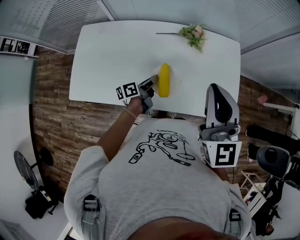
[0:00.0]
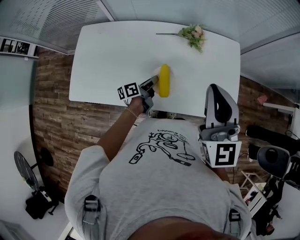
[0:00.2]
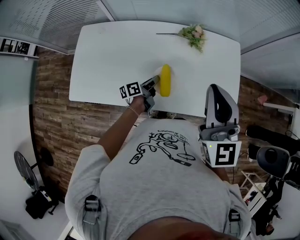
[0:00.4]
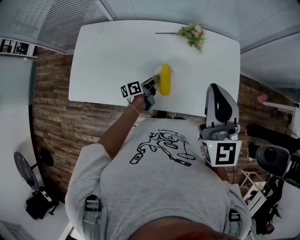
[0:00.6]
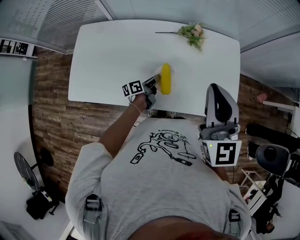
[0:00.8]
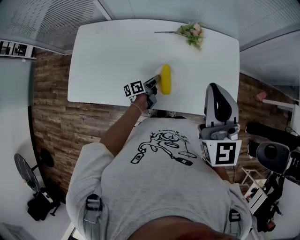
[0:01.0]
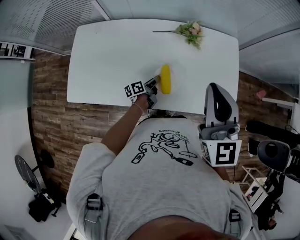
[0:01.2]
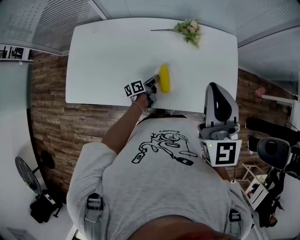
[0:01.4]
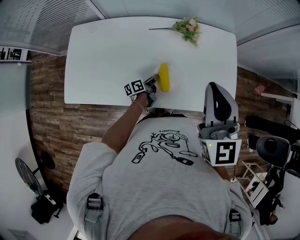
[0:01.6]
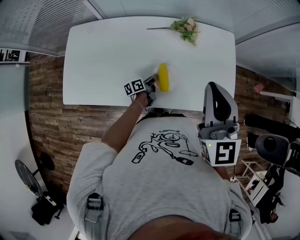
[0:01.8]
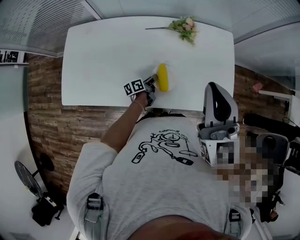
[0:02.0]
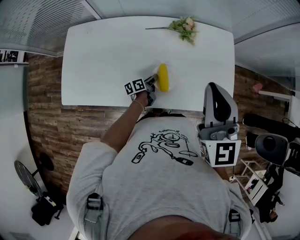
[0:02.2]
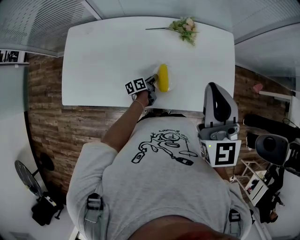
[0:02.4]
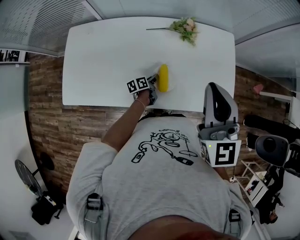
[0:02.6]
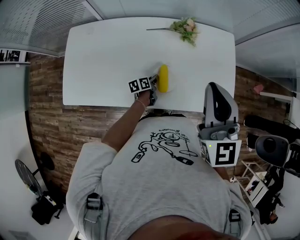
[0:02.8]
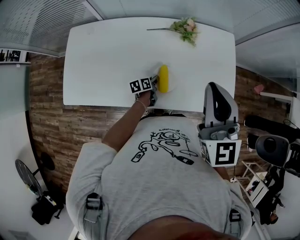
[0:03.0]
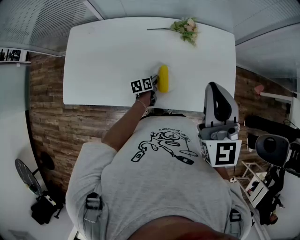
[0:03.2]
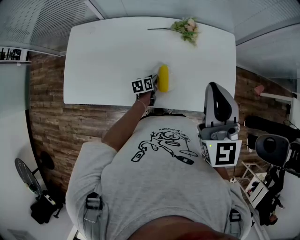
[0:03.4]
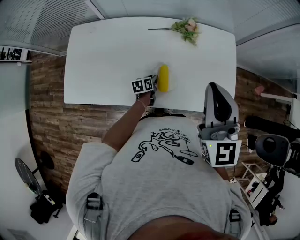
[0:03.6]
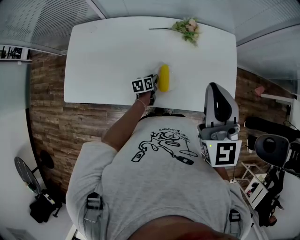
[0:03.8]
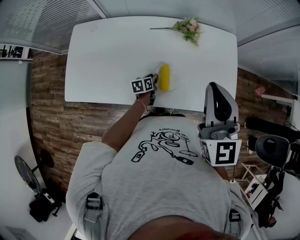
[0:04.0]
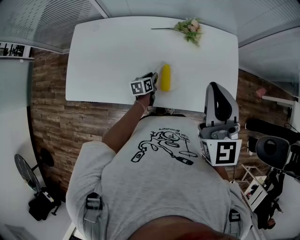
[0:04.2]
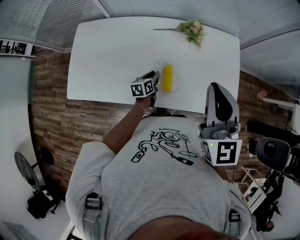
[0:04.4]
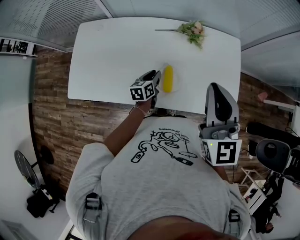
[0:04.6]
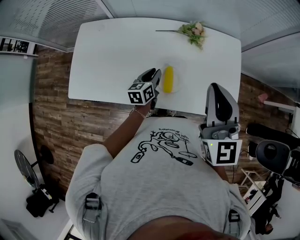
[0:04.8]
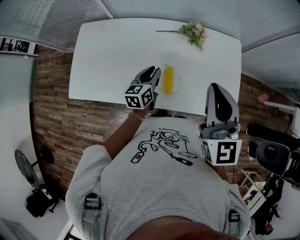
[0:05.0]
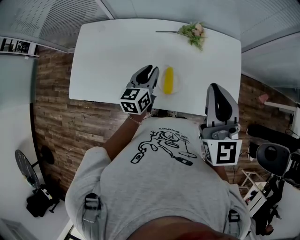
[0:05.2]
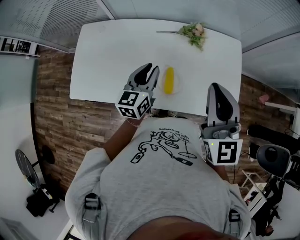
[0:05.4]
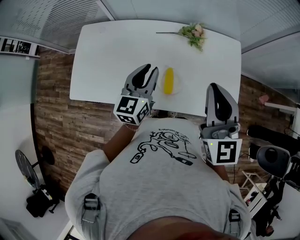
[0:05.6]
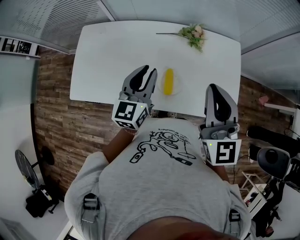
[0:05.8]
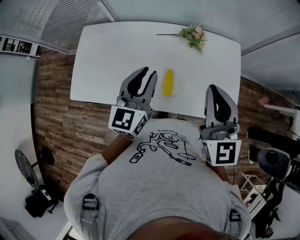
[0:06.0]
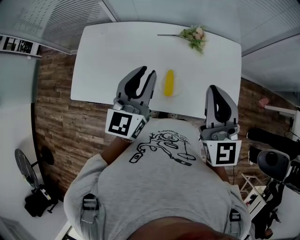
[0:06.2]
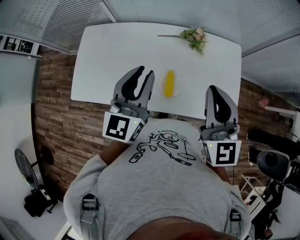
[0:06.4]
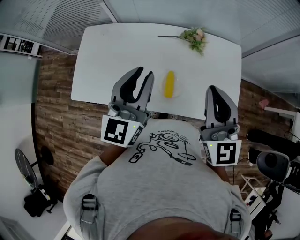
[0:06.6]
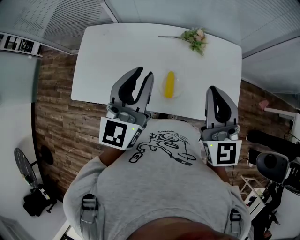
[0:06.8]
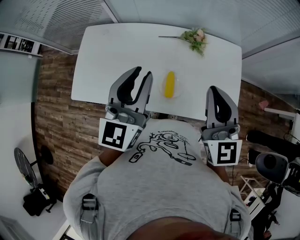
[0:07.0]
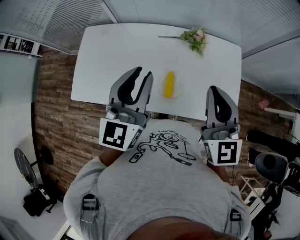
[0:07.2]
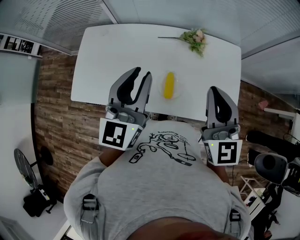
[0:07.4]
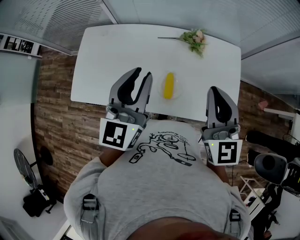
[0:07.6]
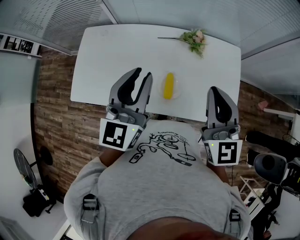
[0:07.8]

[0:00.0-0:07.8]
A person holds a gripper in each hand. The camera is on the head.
0:00.0 to 0:01.6: The left gripper goes about 15 cm downward.
0:01.6 to 0:03.2: The left gripper changes its angle by approximately 30 degrees.
0:03.2 to 0:04.6: The left gripper travels upward by some 10 cm, and changes its angle by about 20 degrees.
0:04.6 to 0:06.2: The left gripper moves upward, about 30 cm, and rotates roughly 40 degrees.
0:06.2 to 0:07.8: The grippers move only a little.

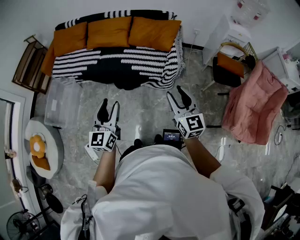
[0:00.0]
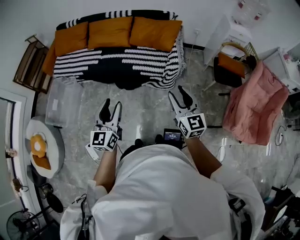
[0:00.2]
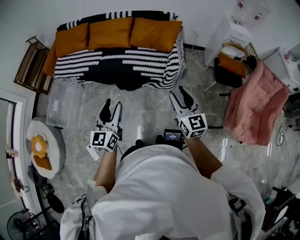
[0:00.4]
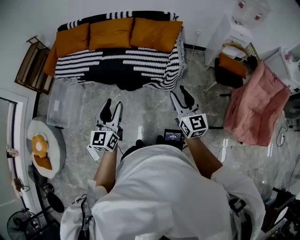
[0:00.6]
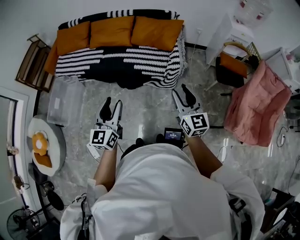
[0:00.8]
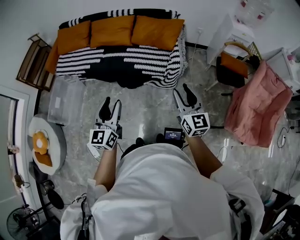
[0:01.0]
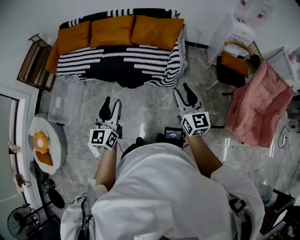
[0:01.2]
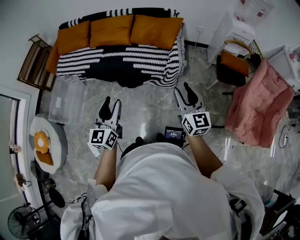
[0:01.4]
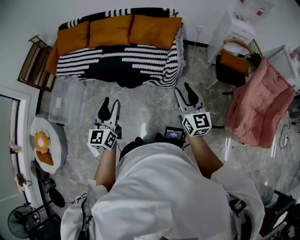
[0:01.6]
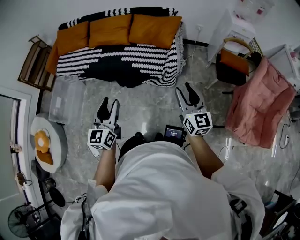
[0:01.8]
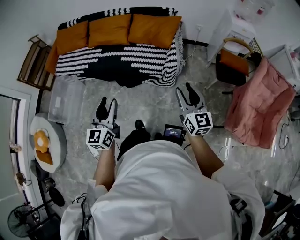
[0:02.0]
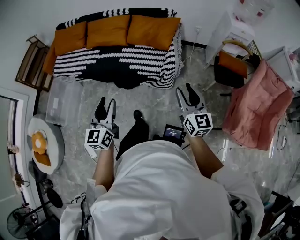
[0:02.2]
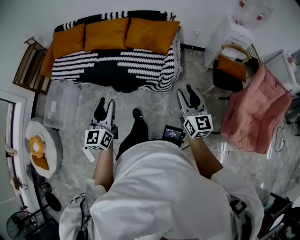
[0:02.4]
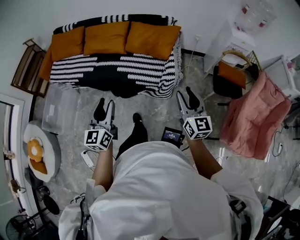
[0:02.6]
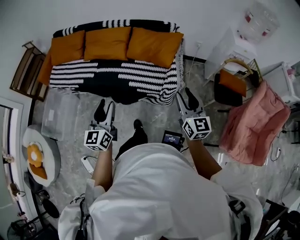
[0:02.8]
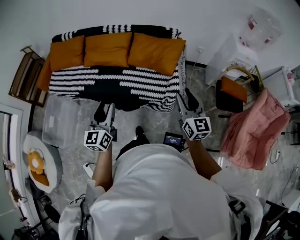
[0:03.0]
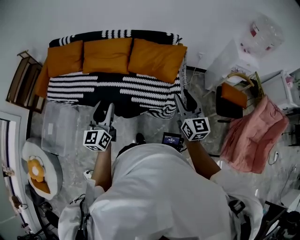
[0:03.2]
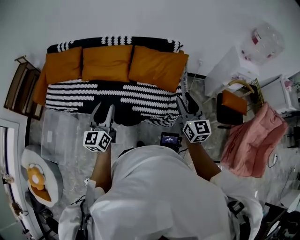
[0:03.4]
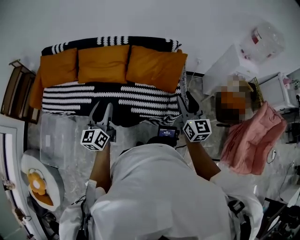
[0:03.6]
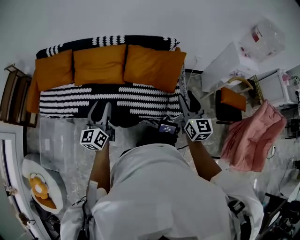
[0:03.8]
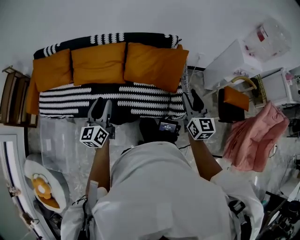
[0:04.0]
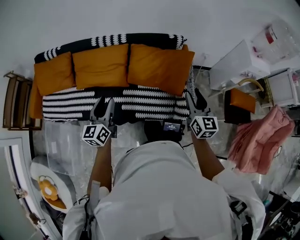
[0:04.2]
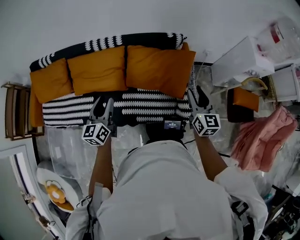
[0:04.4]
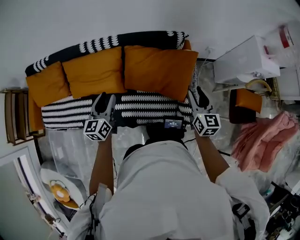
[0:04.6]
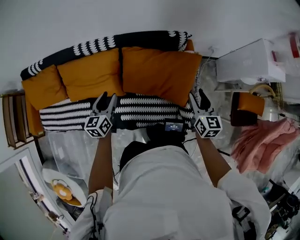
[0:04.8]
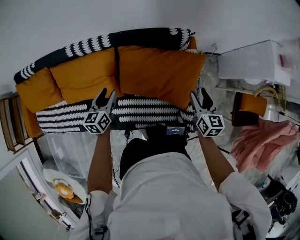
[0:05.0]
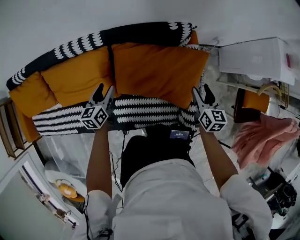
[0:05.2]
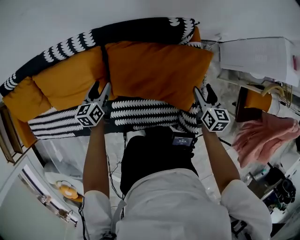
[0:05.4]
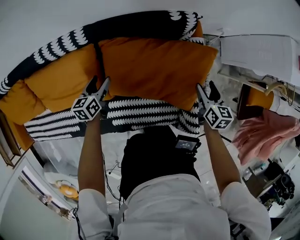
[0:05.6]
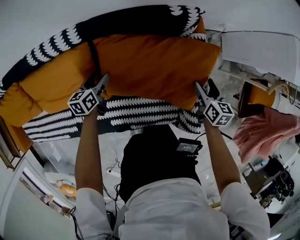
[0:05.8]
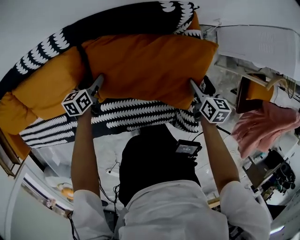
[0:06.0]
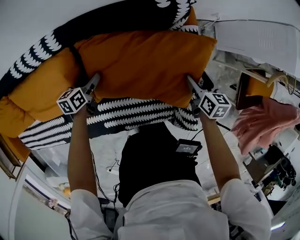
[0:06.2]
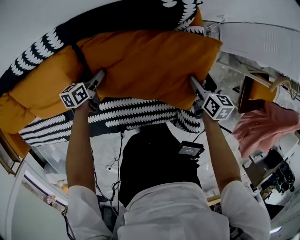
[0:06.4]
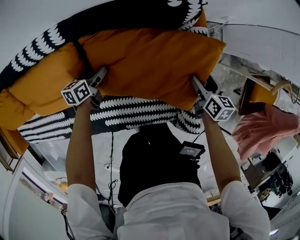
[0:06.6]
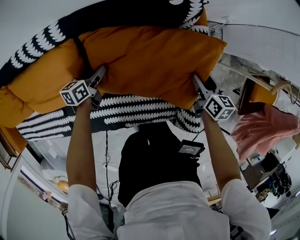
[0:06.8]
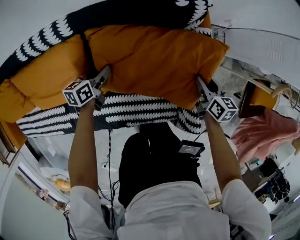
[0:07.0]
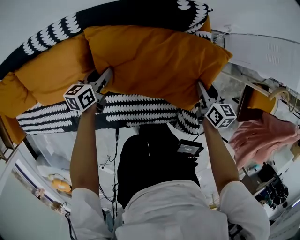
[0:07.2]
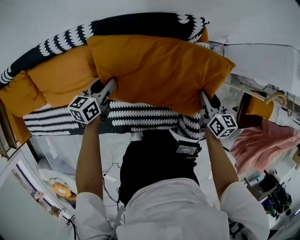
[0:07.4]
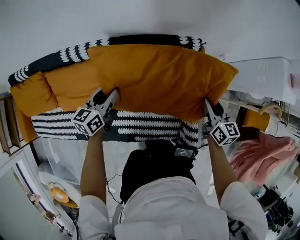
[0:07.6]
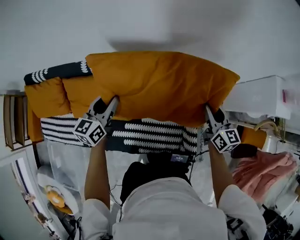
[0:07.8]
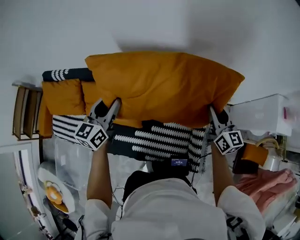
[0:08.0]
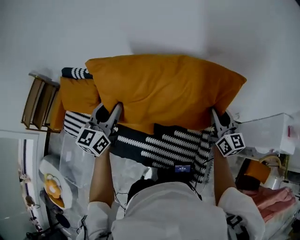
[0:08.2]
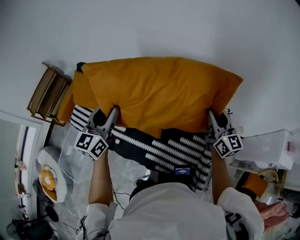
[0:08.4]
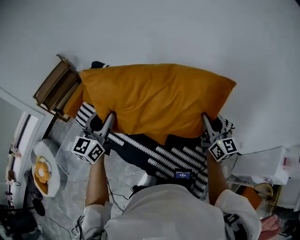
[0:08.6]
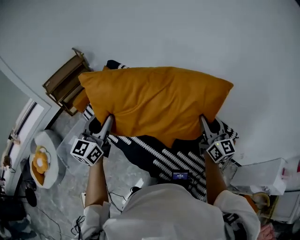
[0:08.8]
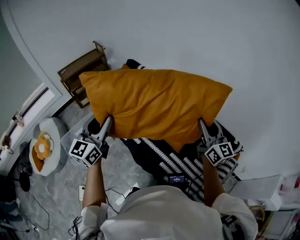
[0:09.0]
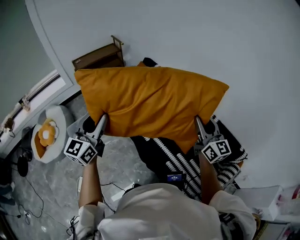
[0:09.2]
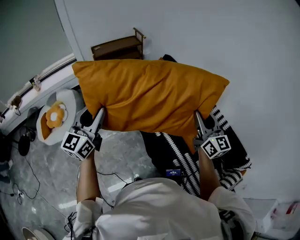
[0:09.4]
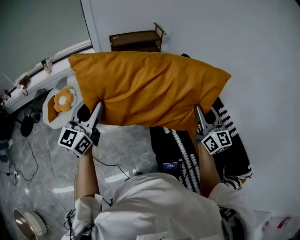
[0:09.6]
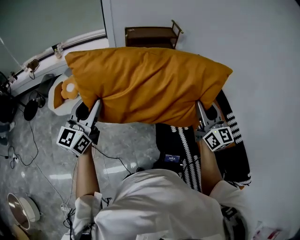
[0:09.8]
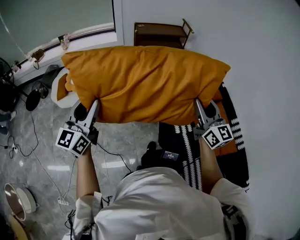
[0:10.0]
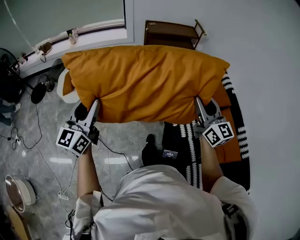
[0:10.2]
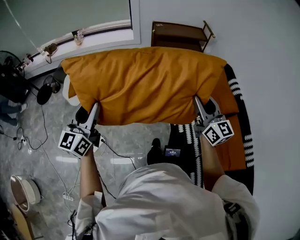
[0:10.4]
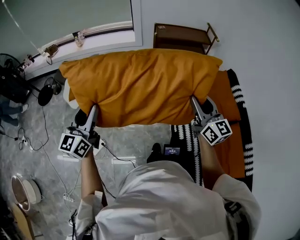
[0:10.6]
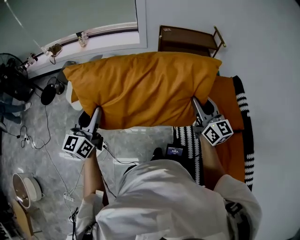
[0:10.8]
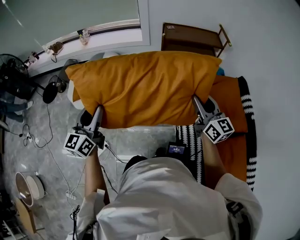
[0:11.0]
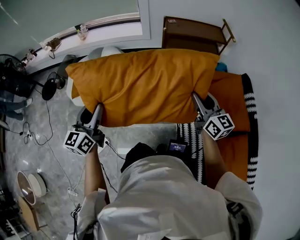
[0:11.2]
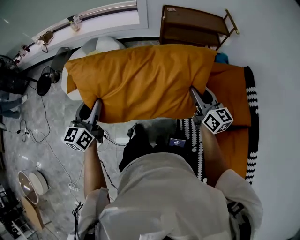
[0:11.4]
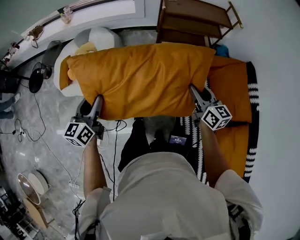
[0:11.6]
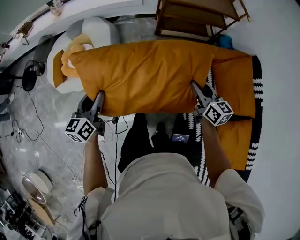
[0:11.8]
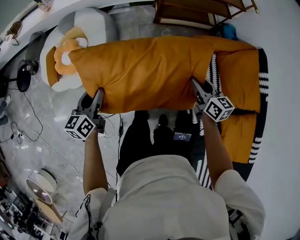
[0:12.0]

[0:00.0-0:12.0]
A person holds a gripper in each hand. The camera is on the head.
0:00.0 to 0:01.6: The left gripper goes about 5 cm to the right; the right gripper is displaced to the right by about 10 cm.
0:01.6 to 0:03.0: Both grippers travel together forward, approximately 20 cm.
0:03.0 to 0:04.4: The two grippers go approximately 40 cm forward.
0:04.4 to 0:06.0: The grippers both shift downward and forward by some 50 cm. The right gripper points its fingers approximately 30 degrees further downward, and opens up; the left gripper tips its fingers downward by about 30 degrees, and opens.
0:06.0 to 0:07.6: Both grippers move upward, roughly 20 cm. The right gripper turns by roughly 20 degrees, and closes its fingers. The left gripper changes its angle by about 20 degrees, and closes up.
0:07.6 to 0:09.0: The two grippers travel together, about 50 cm. The right gripper angles its fingers upward, by about 40 degrees, while the left gripper angles its fingers upward, by about 30 degrees.
0:09.0 to 0:10.4: The two grippers travel together, approximately 50 cm. The right gripper turns by roughly 40 degrees; the left gripper rotates approximately 40 degrees.
0:10.4 to 0:12.0: The grippers both shift forward and downward by about 50 cm. The left gripper rotates approximately 40 degrees. Meanwhile the right gripper tilts its fingers about 30 degrees downward.

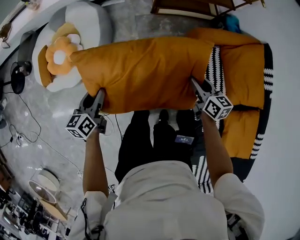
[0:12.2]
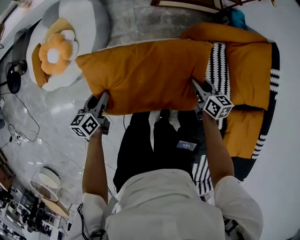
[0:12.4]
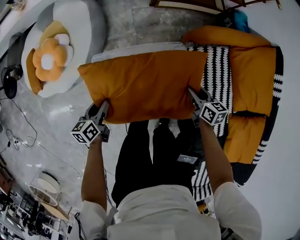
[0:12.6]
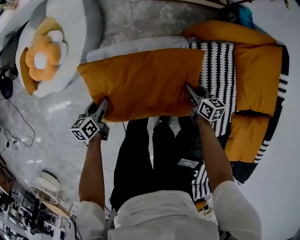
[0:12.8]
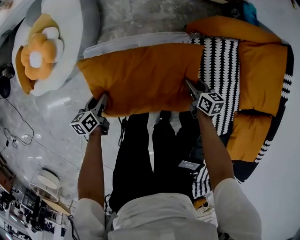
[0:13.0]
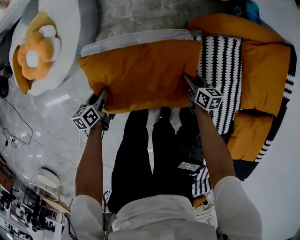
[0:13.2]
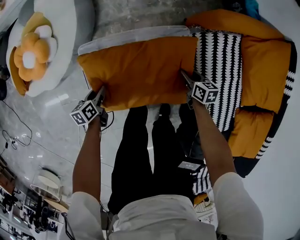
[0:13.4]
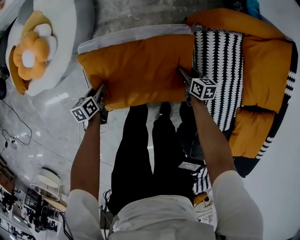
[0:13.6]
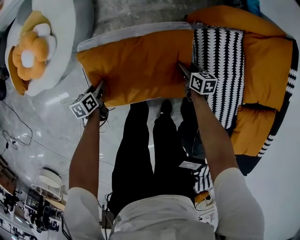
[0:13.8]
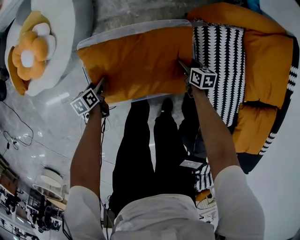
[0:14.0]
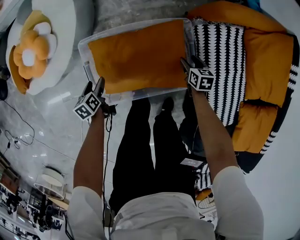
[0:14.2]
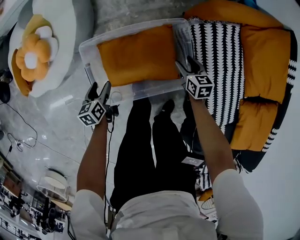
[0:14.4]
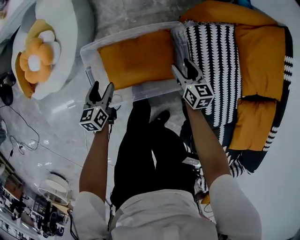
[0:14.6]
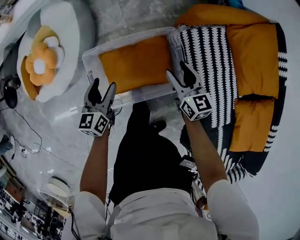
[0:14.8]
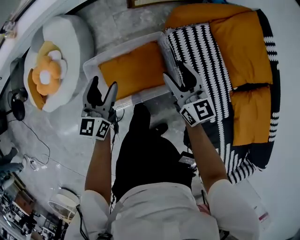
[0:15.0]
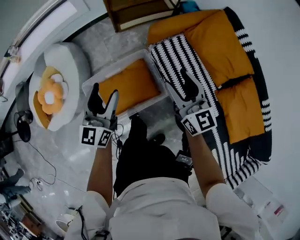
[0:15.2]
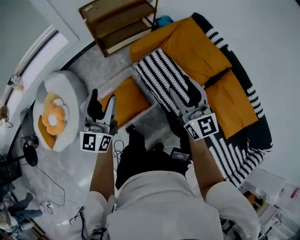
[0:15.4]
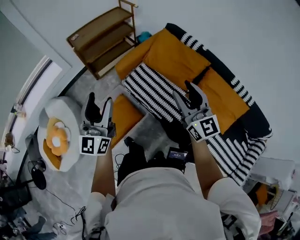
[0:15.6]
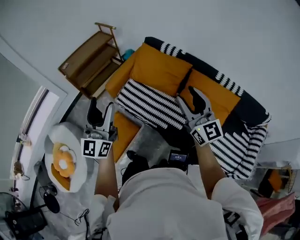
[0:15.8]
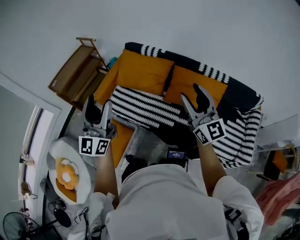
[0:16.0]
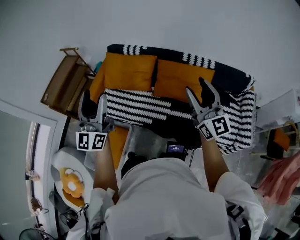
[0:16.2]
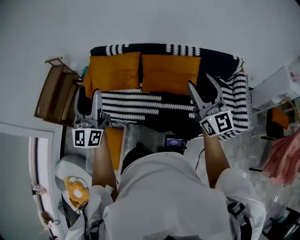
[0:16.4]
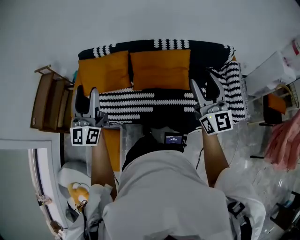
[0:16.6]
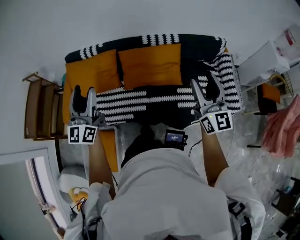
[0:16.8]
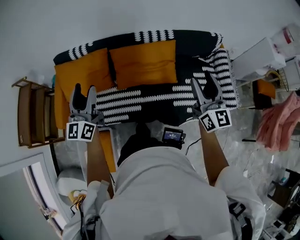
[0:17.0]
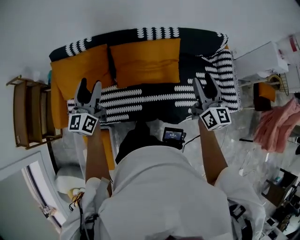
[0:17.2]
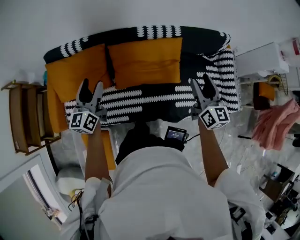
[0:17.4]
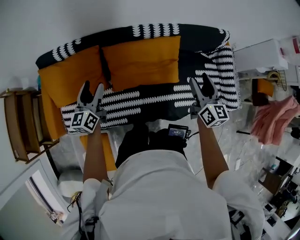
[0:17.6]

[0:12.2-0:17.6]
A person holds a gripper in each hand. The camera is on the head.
0:12.2 to 0:13.6: Both grippers travel together downward, roughly 35 cm. The left gripper turns by roughly 30 degrees, while the right gripper turns by roughly 20 degrees.
0:13.6 to 0:15.0: Both grippers travel together upward, roughly 35 cm. The right gripper points its fingers some 40 degrees further upward. Meanwhile the left gripper tilts its fingers about 40 degrees upward, and opens its fingers.
0:15.0 to 0:16.2: The two grippers travel together, approximately 60 cm. The right gripper angles its fingers upward, by some 30 degrees. Meanwhile the left gripper angles its fingers upward, by some 40 degrees.
0:16.2 to 0:17.6: The left gripper shifts by some 50 cm, and points its fingers roughly 30 degrees further downward, while the right gripper shifts by some 35 cm, and rotates approximately 50 degrees.
